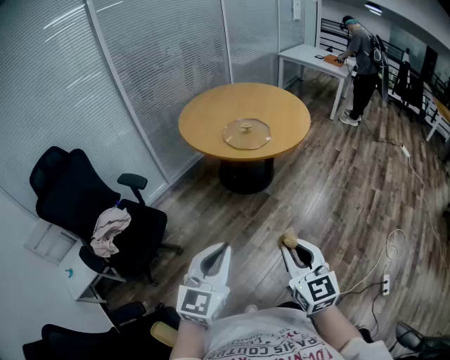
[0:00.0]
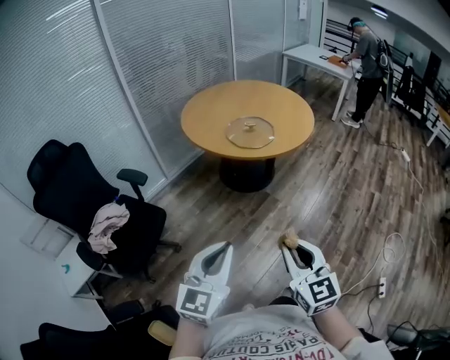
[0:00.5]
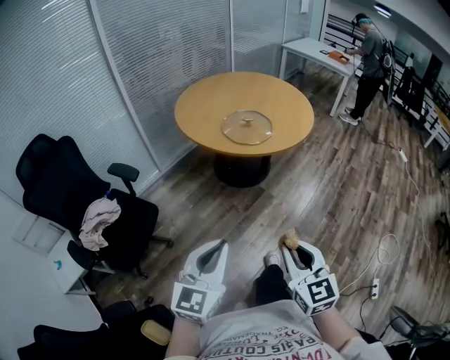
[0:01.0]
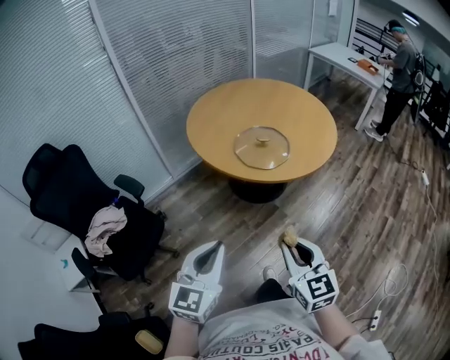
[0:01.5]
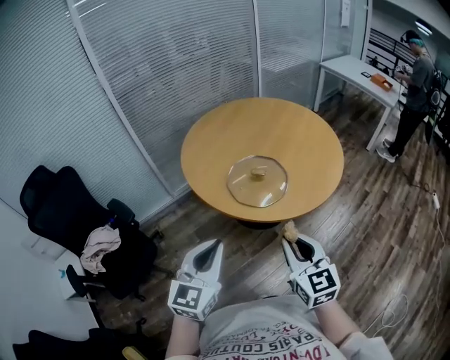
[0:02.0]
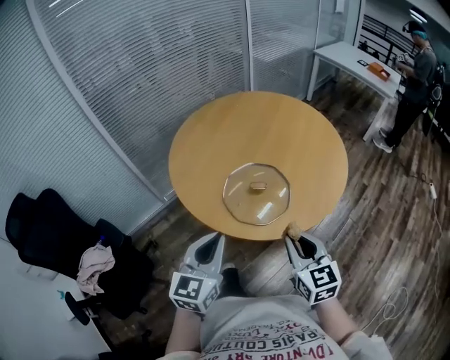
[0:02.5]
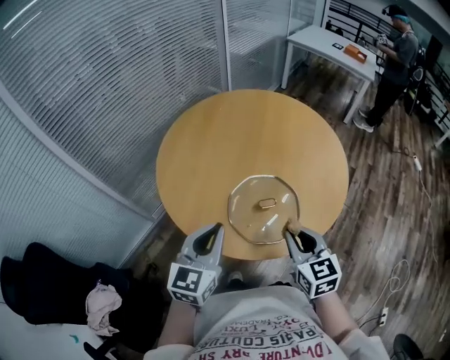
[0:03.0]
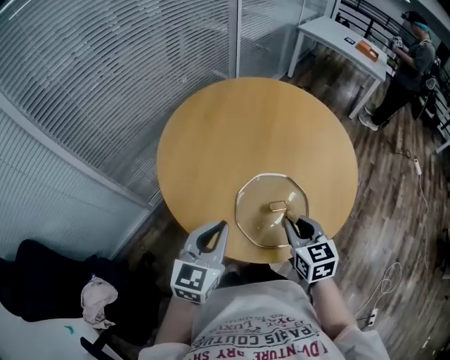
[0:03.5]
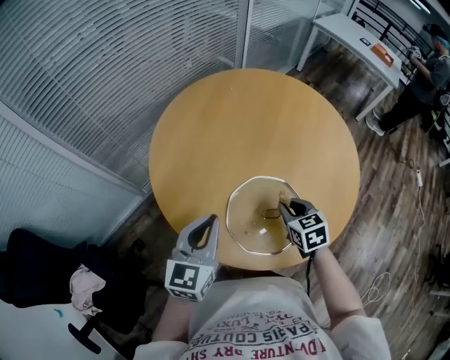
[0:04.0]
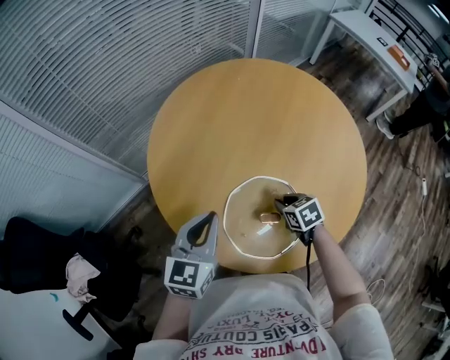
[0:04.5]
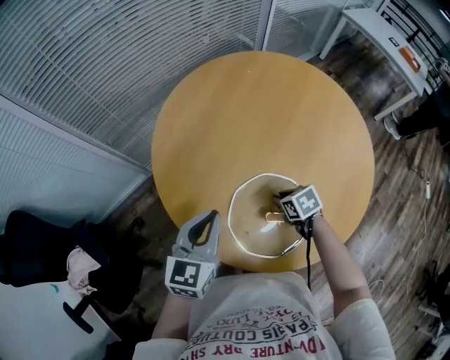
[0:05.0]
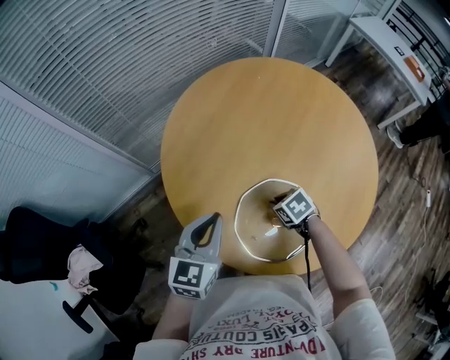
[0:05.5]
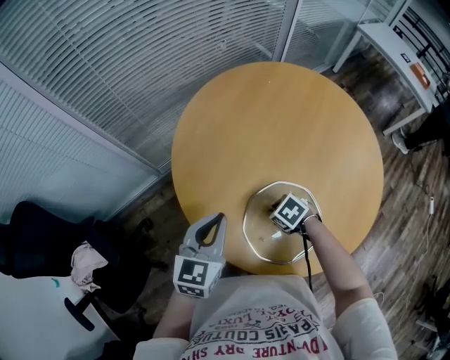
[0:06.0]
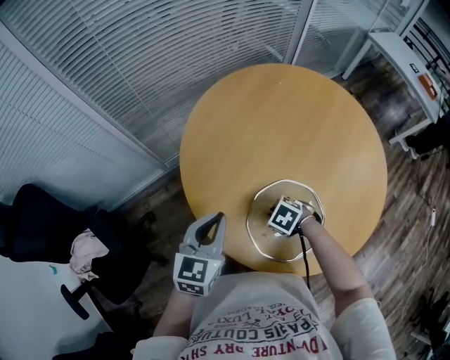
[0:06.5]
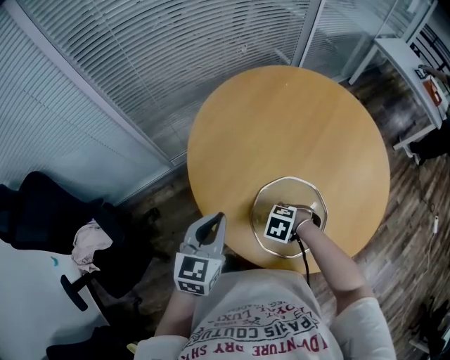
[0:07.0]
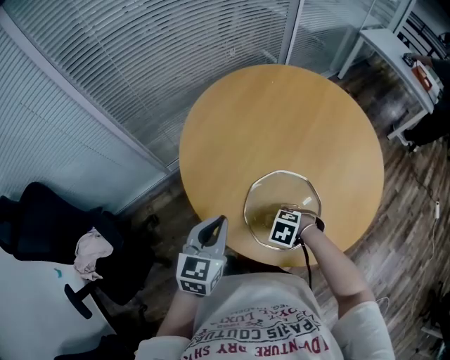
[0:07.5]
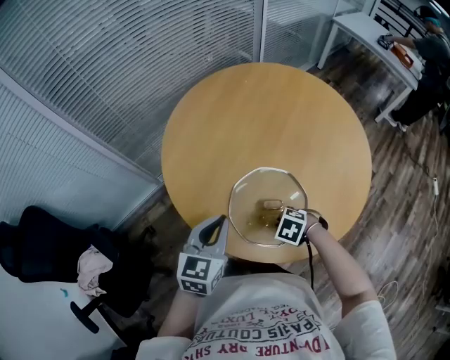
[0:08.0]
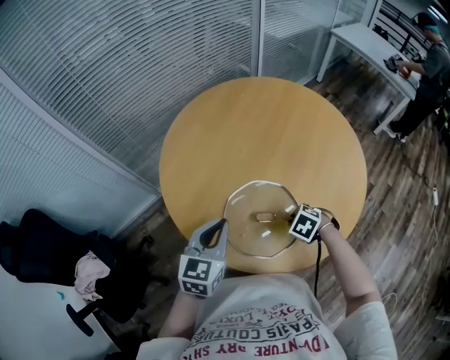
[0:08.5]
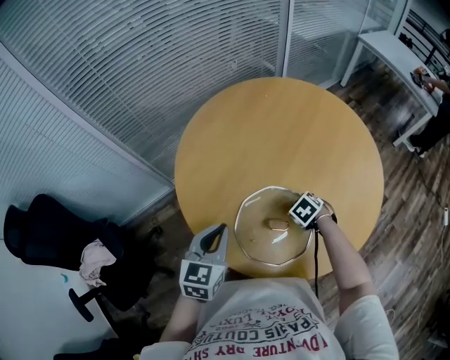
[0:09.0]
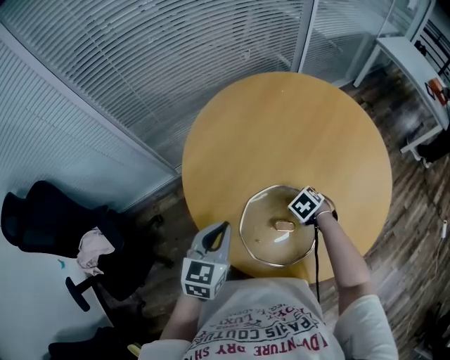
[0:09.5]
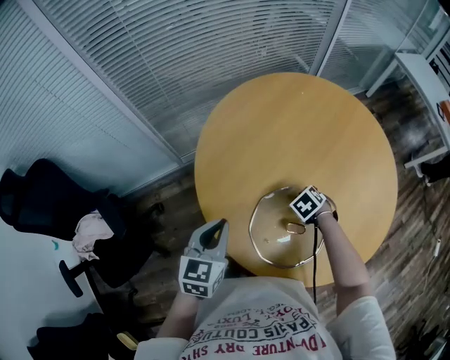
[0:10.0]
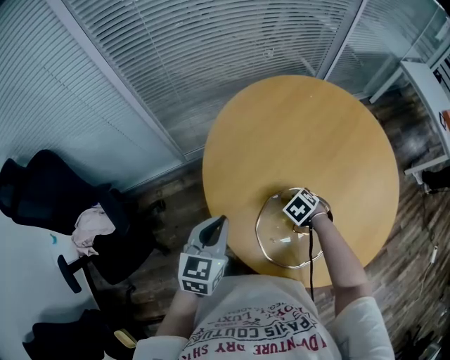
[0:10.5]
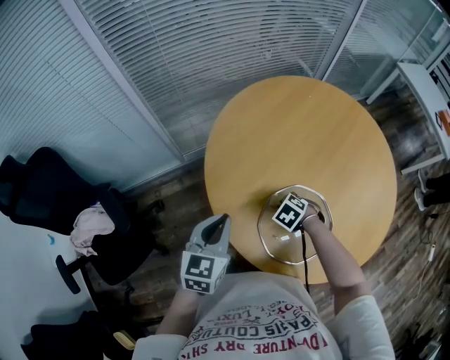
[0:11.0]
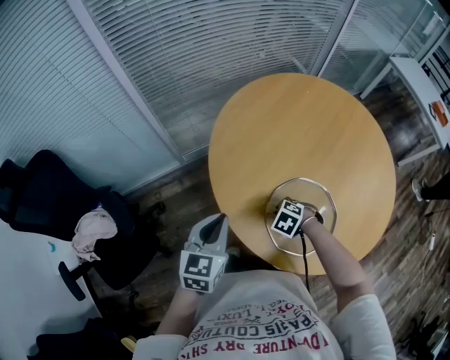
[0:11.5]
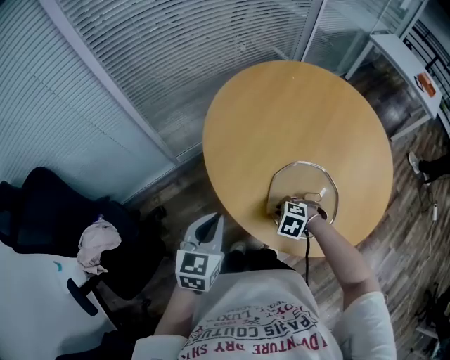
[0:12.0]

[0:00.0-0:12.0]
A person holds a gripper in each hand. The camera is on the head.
0.0 to 2.0 s: The two grippers travel together, forward, roughly 40 cm.
2.0 to 4.0 s: The two grippers travel together, forward, some 50 cm. The right gripper travels downward by approximately 20 cm, and tips its fingers downward by some 30 degrees.
4.0 to 6.0 s: The left gripper shifts by some 5 cm. Meanwhile the right gripper travels downward by some 10 cm, and changes its angle by approximately 50 degrees.
6.0 to 8.0 s: The right gripper shifts by approximately 15 cm. The left gripper changes place by roughly 10 cm.
8.0 to 10.0 s: The left gripper changes place by approximately 10 cm; the right gripper ends up about 20 cm from where it was.
10.0 to 12.0 s: The left gripper moves some 10 cm. Meanwhile the right gripper shifts by approximately 20 cm, and turns by about 20 degrees.

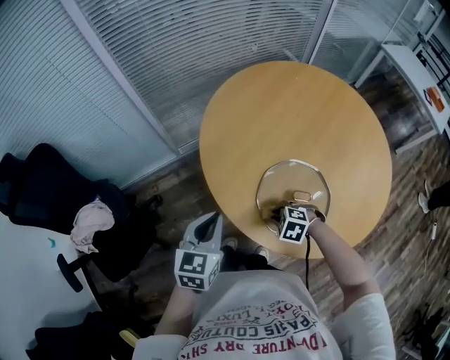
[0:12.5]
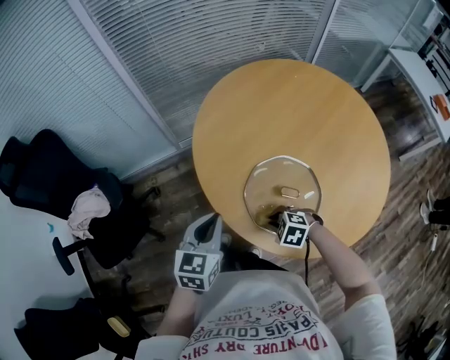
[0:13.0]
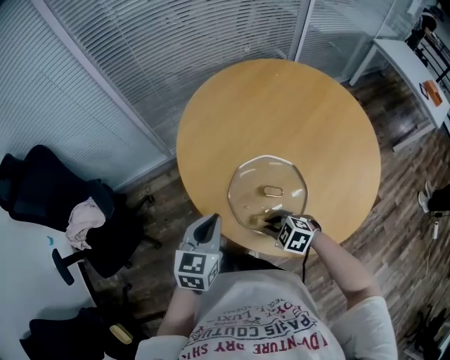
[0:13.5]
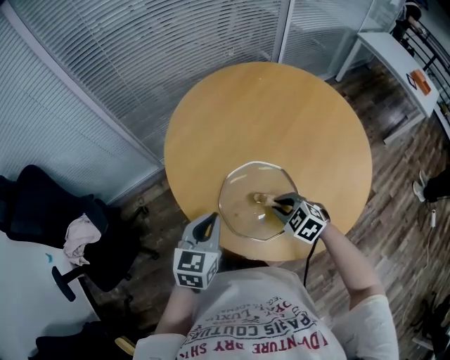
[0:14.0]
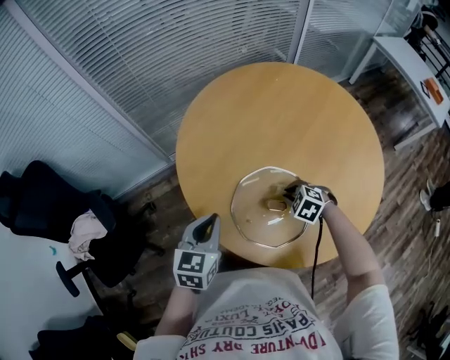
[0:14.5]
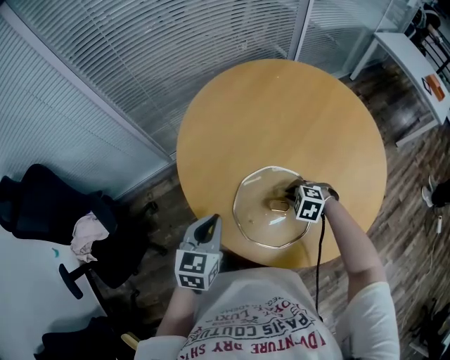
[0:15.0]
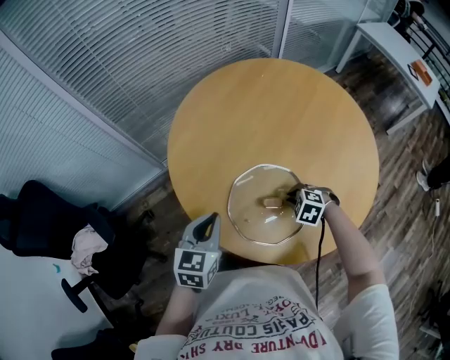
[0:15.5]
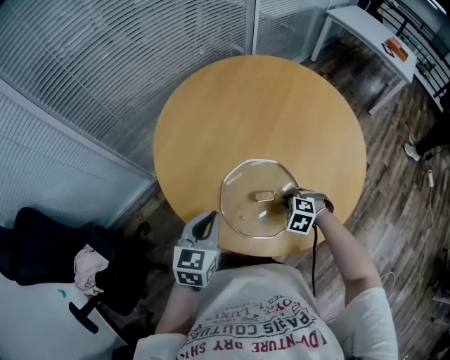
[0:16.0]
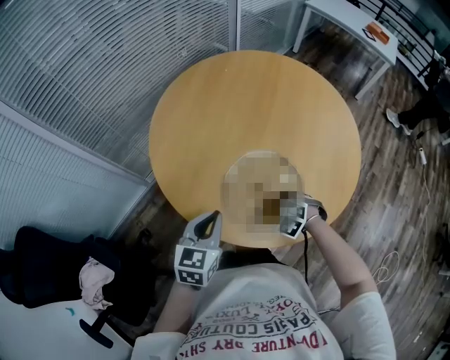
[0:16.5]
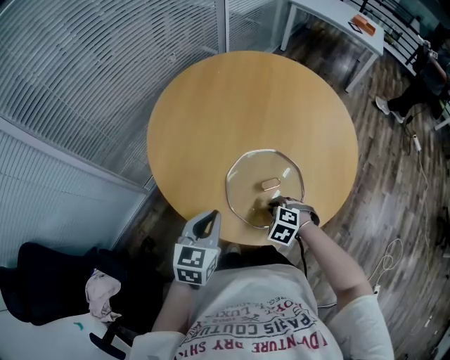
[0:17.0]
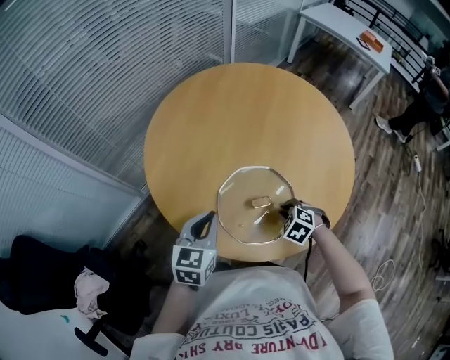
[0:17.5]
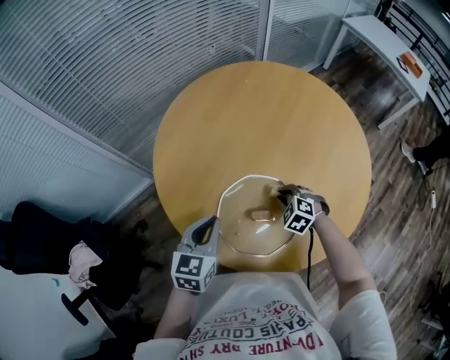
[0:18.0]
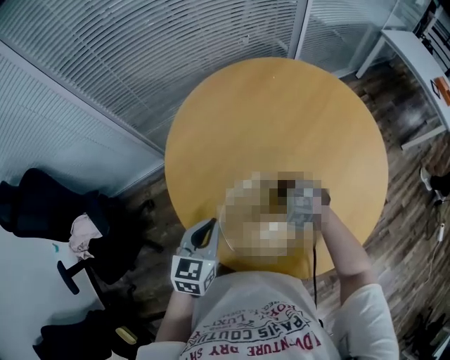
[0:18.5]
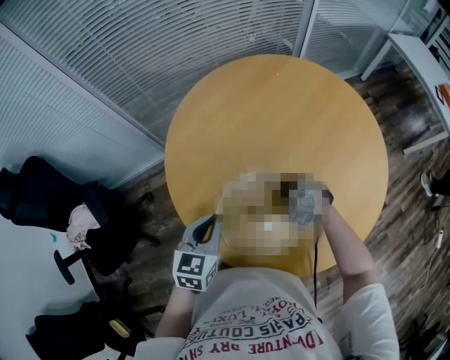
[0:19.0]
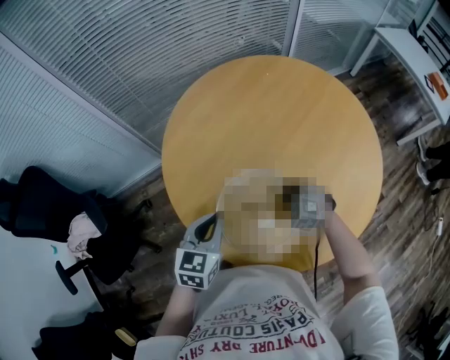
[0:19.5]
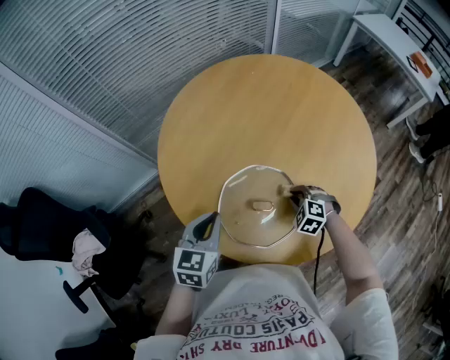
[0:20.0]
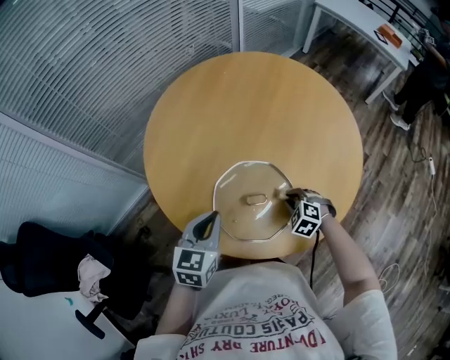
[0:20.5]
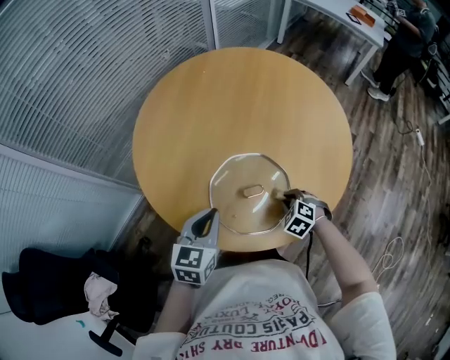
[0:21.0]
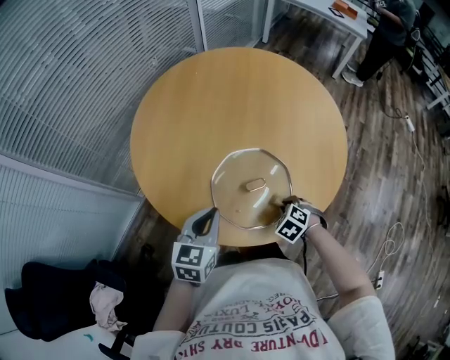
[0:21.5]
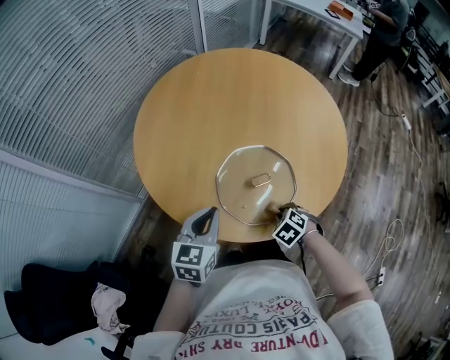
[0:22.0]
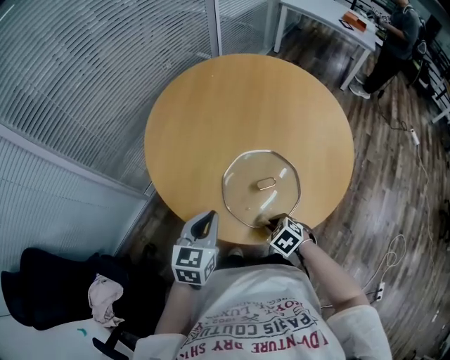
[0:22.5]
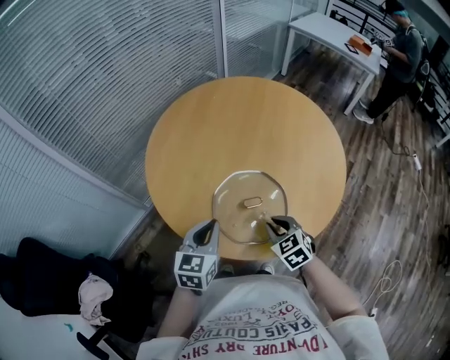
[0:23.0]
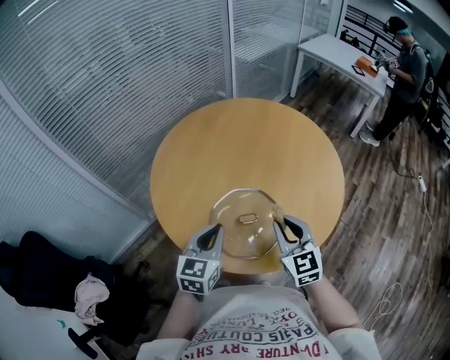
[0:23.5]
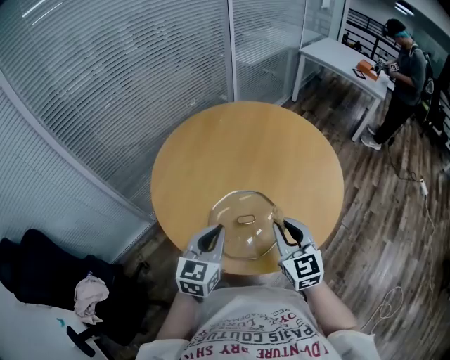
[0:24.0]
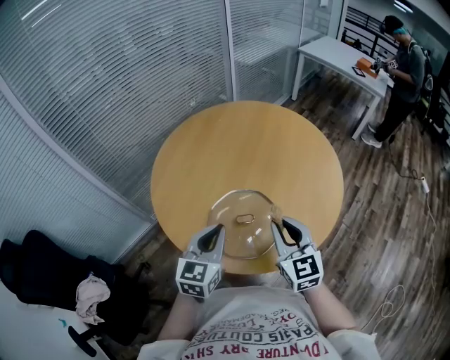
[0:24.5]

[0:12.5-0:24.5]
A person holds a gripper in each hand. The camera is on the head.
12.5 to 14.5 s: The right gripper moves roughly 20 cm, while the left gripper shifts by about 10 cm.
14.5 to 16.5 s: The right gripper moves approximately 10 cm, and changes its angle by about 30 degrees. The left gripper rotates roughly 20 degrees.
16.5 to 18.5 s: The left gripper moves about 5 cm, and changes its angle by roughly 20 degrees, while the right gripper changes place by some 15 cm, and turns by about 30 degrees.
18.5 to 20.5 s: The right gripper is displaced backward by about 15 cm, and swivels about 30 degrees.
20.5 to 22.5 s: The left gripper shifts by some 10 cm. The right gripper changes place by approximately 20 cm, and rotates approximately 30 degrees.
22.5 to 24.5 s: The right gripper shifts about 25 cm upward, and points its fingers roughly 60 degrees further upward; the left gripper moves to the right and upward, about 15 cm.

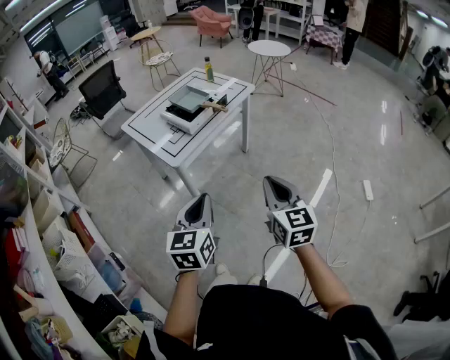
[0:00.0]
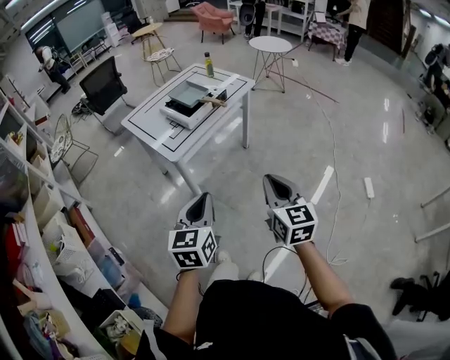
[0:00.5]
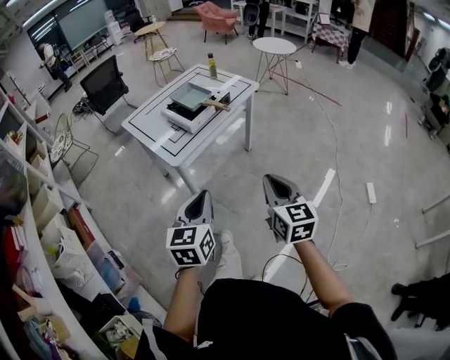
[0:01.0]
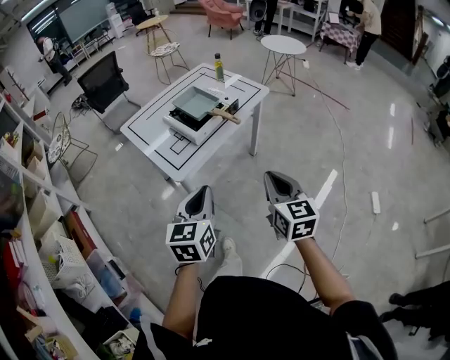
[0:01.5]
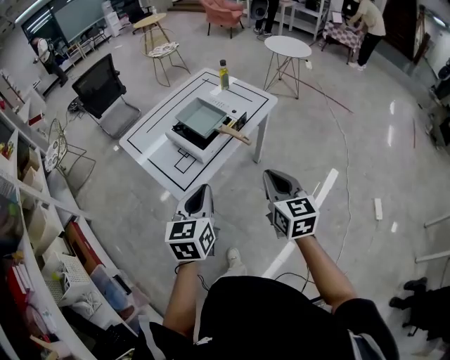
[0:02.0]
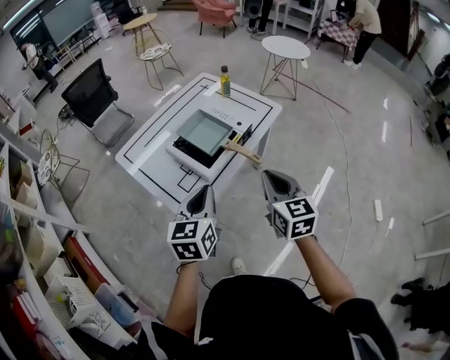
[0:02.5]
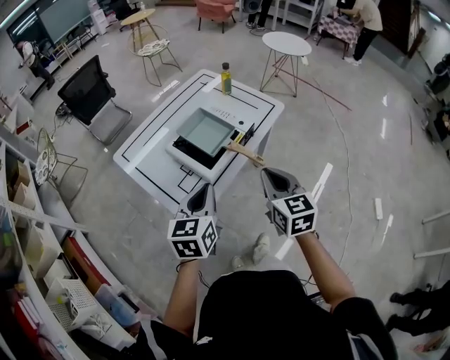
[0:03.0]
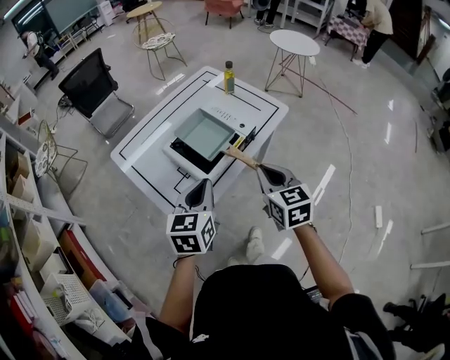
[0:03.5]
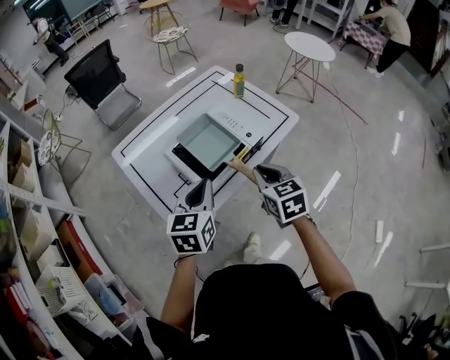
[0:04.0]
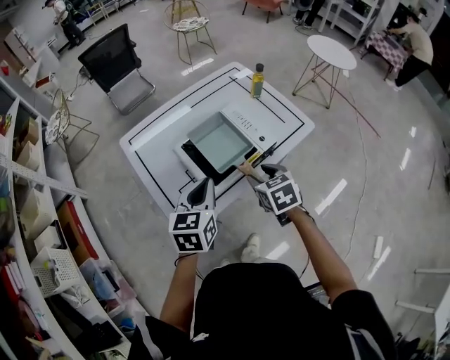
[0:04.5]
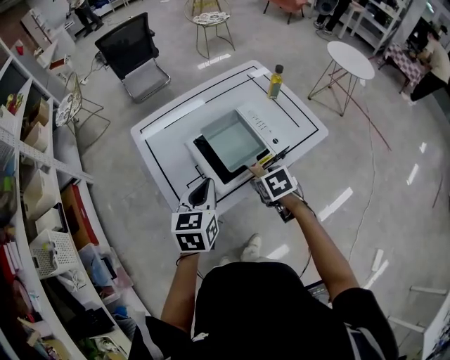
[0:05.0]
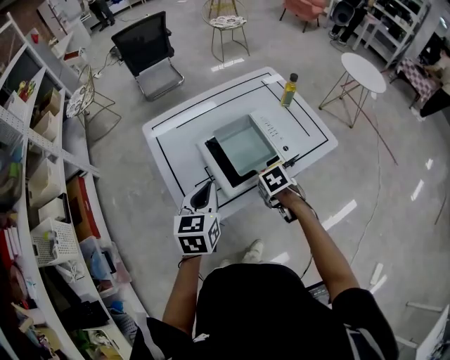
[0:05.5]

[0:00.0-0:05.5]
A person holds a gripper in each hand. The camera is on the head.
0.0 to 2.0 s: The grippers both shift forward by roughly 30 cm.
2.0 to 3.5 s: Both grippers move forward, approximately 15 cm.
3.5 to 5.5 s: The right gripper travels downward by approximately 20 cm, points its fingers roughly 50 degrees further downward, and opens its fingers; the left gripper shifts by some 10 cm, and rotates about 20 degrees.
